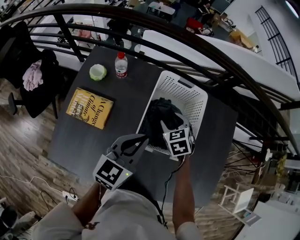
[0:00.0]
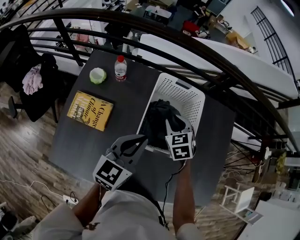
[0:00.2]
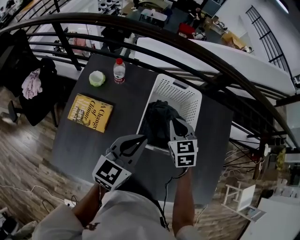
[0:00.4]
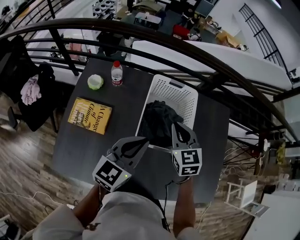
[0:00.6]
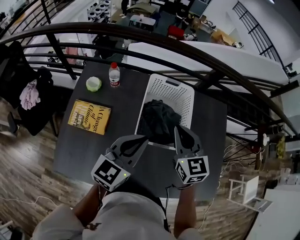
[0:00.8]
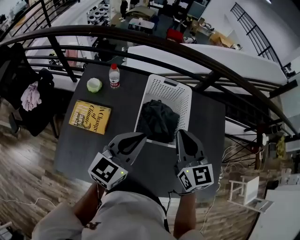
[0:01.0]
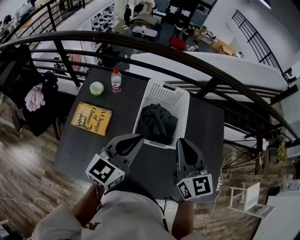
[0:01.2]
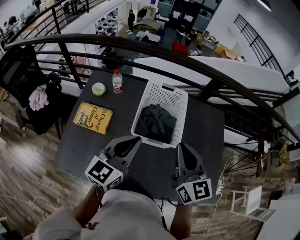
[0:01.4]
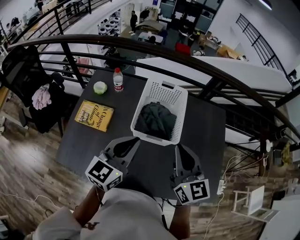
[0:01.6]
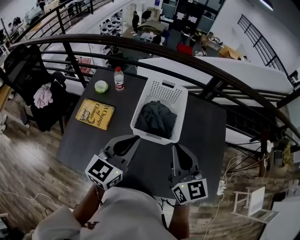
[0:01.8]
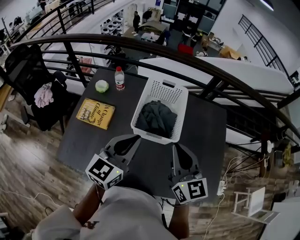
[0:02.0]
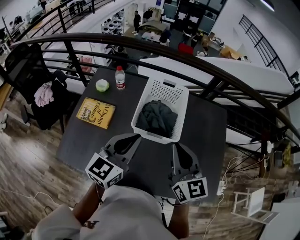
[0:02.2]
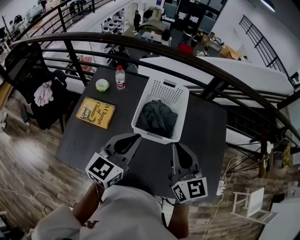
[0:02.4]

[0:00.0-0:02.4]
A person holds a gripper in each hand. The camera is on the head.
0.0 to 1.2 s: The left gripper travels upward and backward by some 10 cm. Meanwhile the right gripper moves upward and backward, some 30 cm, angles its fingers upward, by roughly 50 degrees, and closes its fingers.
1.2 to 2.4 s: The right gripper travels backward by about 5 cm, while the left gripper moves roughly 5 cm.

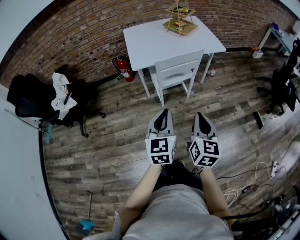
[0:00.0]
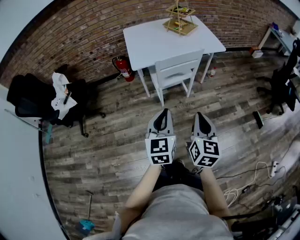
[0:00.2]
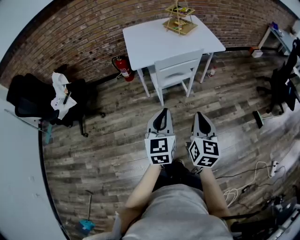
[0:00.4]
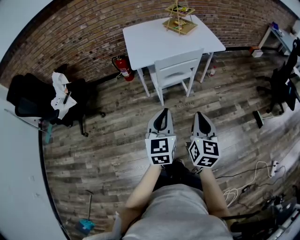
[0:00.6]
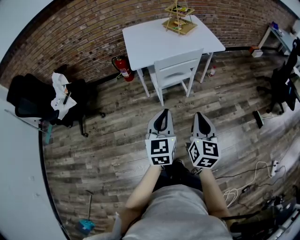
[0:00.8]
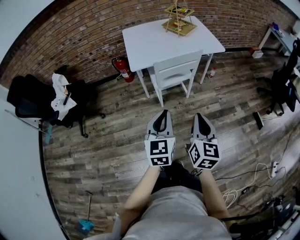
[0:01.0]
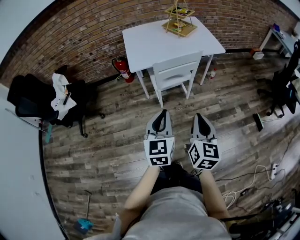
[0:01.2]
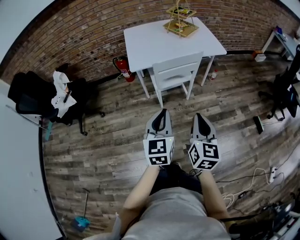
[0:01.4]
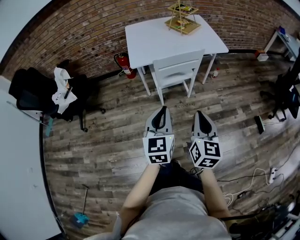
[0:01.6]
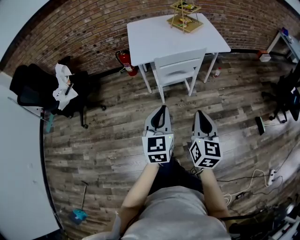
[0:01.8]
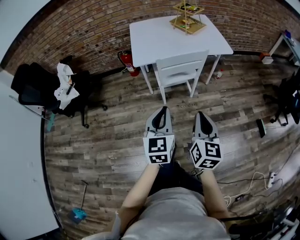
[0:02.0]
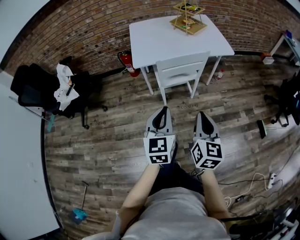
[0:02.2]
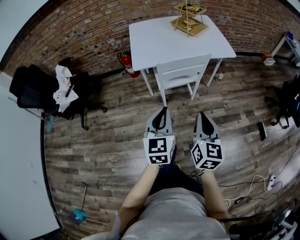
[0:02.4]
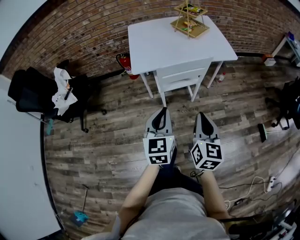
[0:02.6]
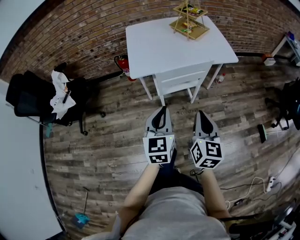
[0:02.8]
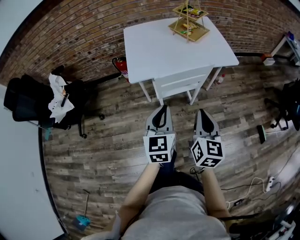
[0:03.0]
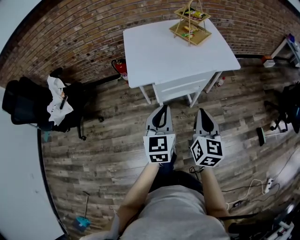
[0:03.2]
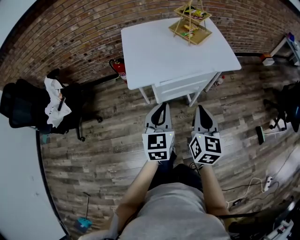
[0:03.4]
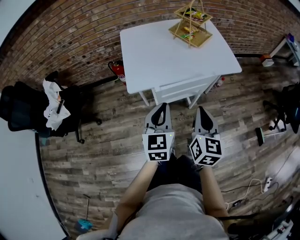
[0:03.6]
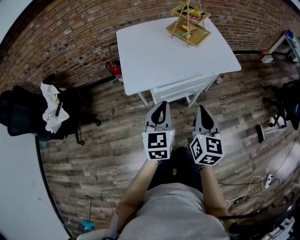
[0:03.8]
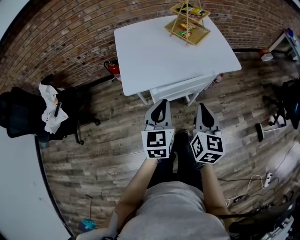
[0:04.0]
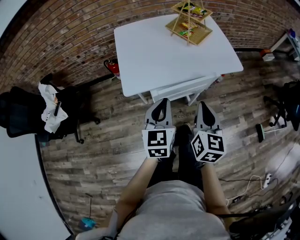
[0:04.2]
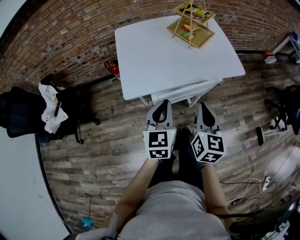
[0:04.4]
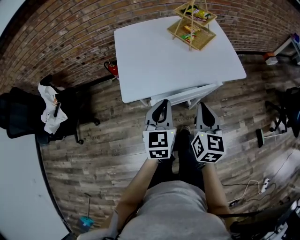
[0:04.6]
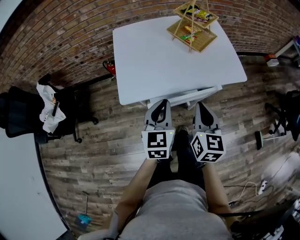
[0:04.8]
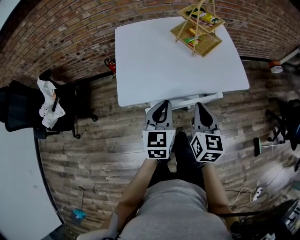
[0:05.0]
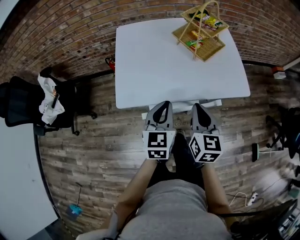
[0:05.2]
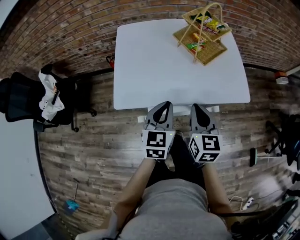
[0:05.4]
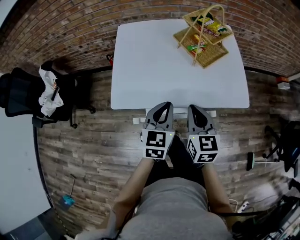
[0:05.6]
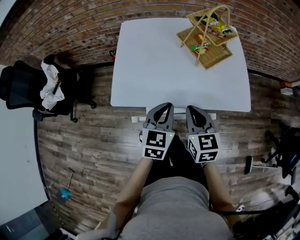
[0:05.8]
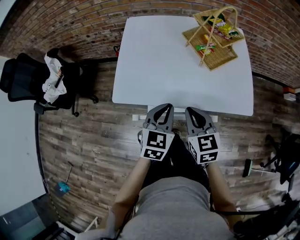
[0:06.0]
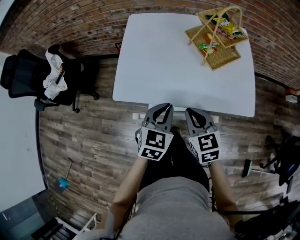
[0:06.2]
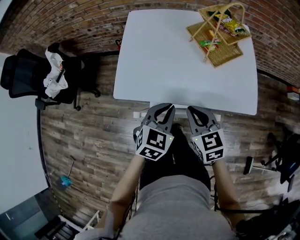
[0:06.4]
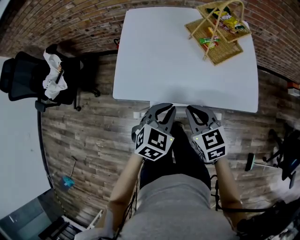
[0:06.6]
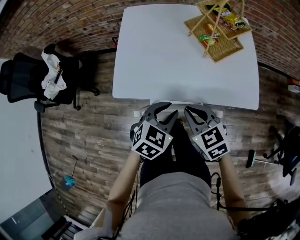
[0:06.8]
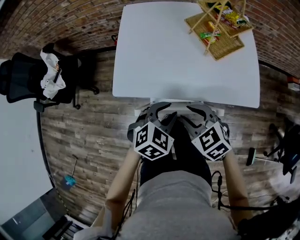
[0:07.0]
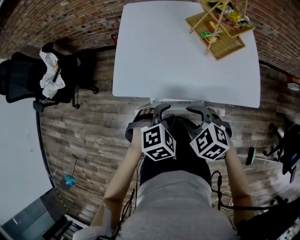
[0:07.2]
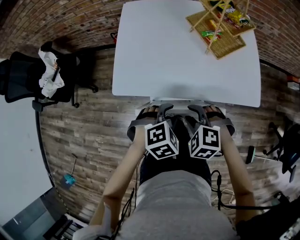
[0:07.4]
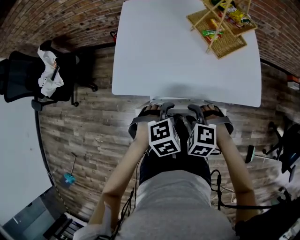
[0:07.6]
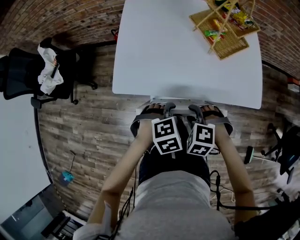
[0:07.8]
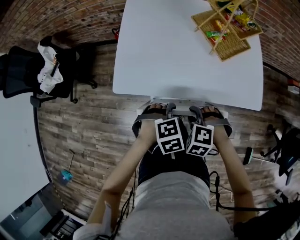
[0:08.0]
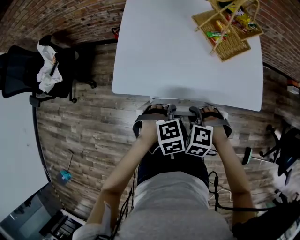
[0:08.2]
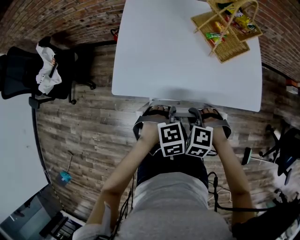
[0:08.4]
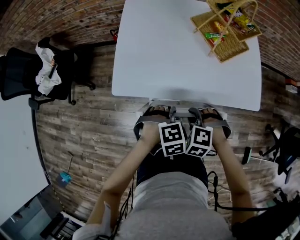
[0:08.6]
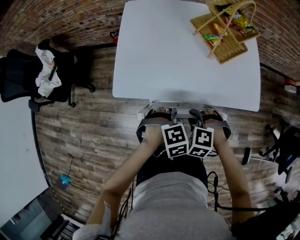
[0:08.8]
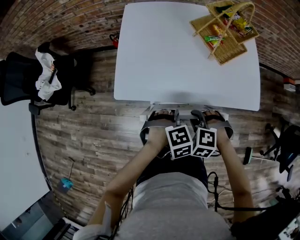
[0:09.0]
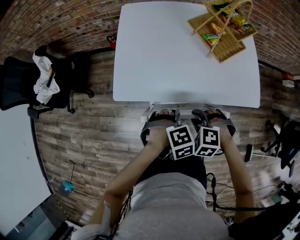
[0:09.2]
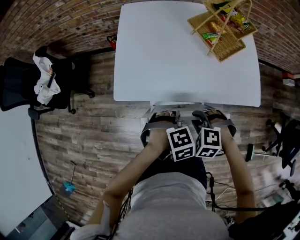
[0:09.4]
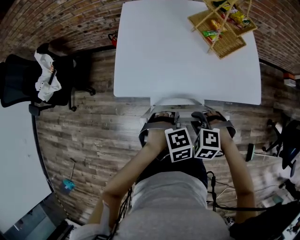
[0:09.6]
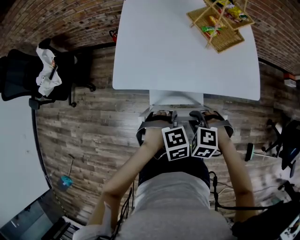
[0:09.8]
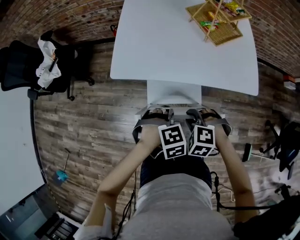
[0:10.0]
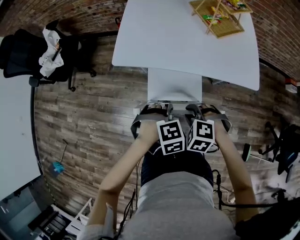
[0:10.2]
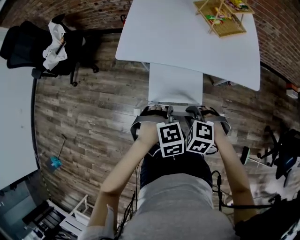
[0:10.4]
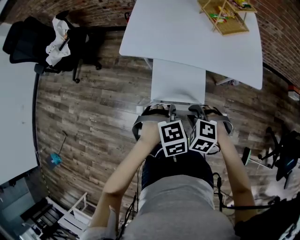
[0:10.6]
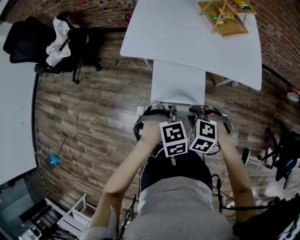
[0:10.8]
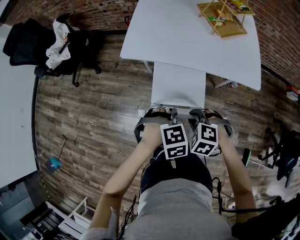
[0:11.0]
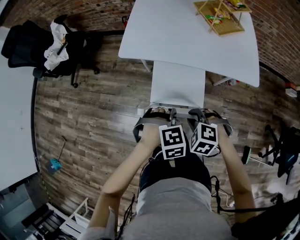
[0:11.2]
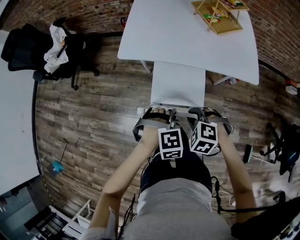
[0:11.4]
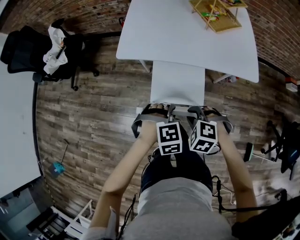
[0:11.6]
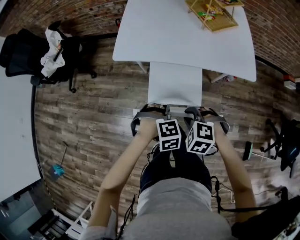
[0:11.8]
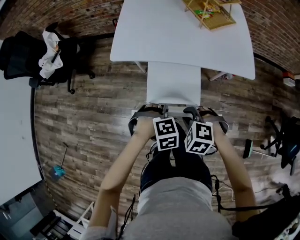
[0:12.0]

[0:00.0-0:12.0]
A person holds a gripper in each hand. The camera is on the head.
0.0 to 1.6 s: The grippers make only small movements.
1.6 to 3.0 s: Both grippers travel together forward, some 15 cm.
3.0 to 4.4 s: The grippers both shift forward by about 15 cm.
4.4 to 6.0 s: The right gripper heads forward, covering approximately 15 cm, and rotates roughly 40 degrees. The left gripper is displaced forward and to the right by some 15 cm.
6.0 to 7.6 s: The left gripper is displaced downward and backward by about 10 cm, tilts its fingers roughly 40 degrees downward, and opens. The right gripper shifts about 10 cm downward, rolls counterclockwise, seen from behind, by approximately 60 degrees, and opens its fingers.
7.6 to 9.0 s: The left gripper closes.
9.0 to 10.4 s: The right gripper shifts by some 15 cm, while the left gripper changes place by about 15 cm.
10.4 to 12.0 s: The grippers move only a little.

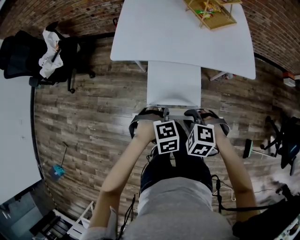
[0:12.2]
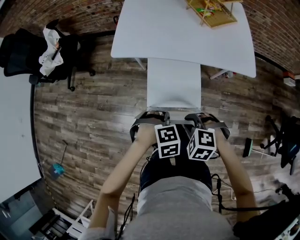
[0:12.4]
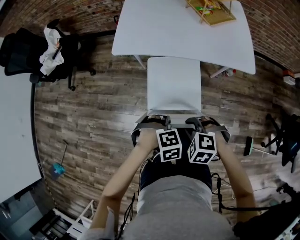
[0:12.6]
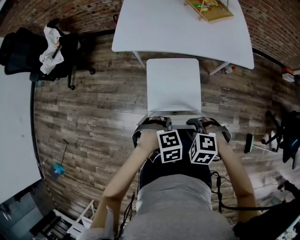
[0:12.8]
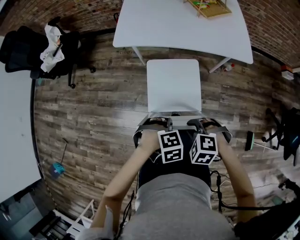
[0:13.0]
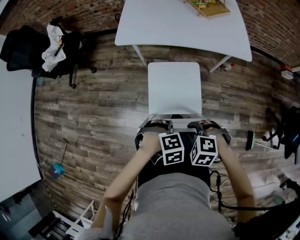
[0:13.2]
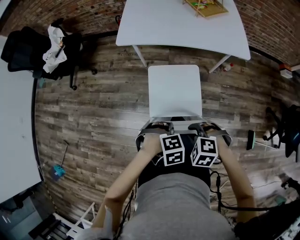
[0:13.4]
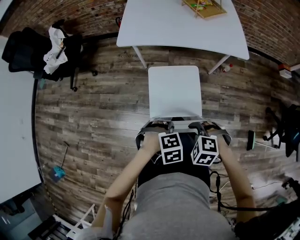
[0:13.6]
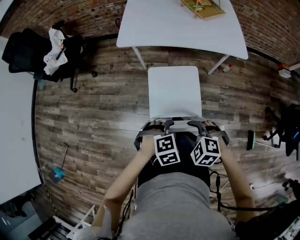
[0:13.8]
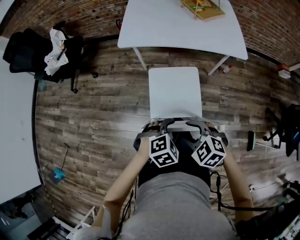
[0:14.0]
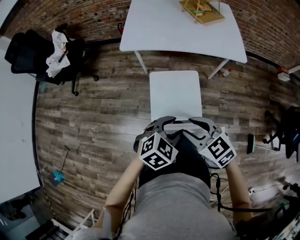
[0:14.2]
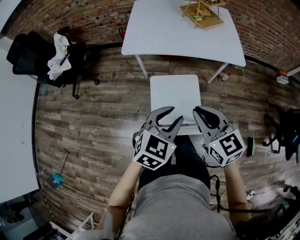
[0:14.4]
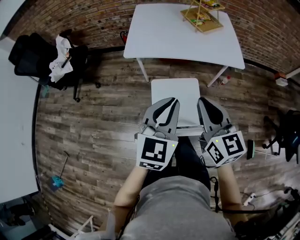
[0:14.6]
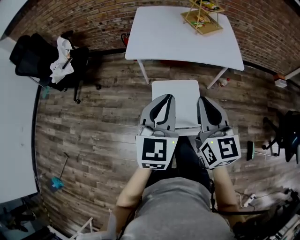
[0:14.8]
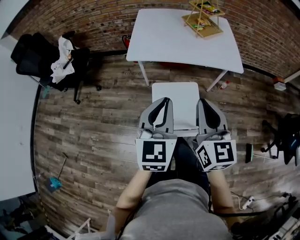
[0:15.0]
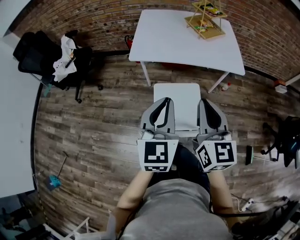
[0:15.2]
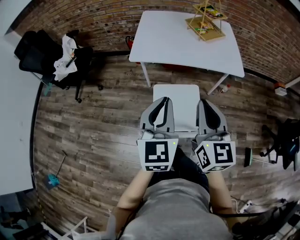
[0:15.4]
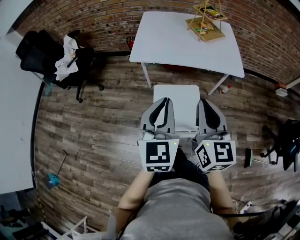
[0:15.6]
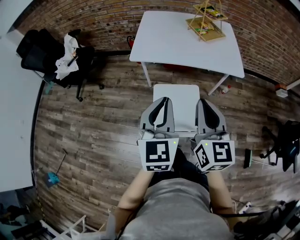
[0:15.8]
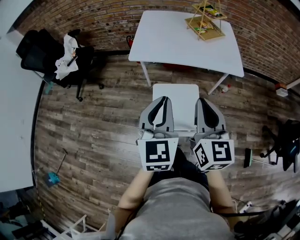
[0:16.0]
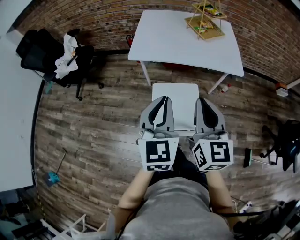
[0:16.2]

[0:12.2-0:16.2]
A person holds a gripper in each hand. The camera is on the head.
12.2 to 13.6 s: The right gripper shifts by some 20 cm. The left gripper shifts by about 20 cm.
13.6 to 14.8 s: The grippers both shift upward by approximately 25 cm. The left gripper angles its fingers upward, by roughly 70 degrees, and opens and closes again. Meanwhile the right gripper tilts its fingers roughly 60 degrees upward, and opens, then closes once more.
14.8 to 16.2 s: The grippers move only a little.

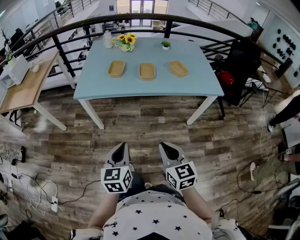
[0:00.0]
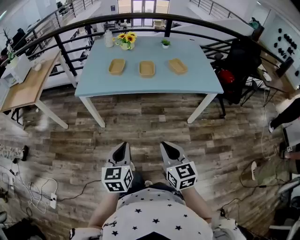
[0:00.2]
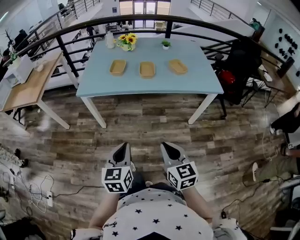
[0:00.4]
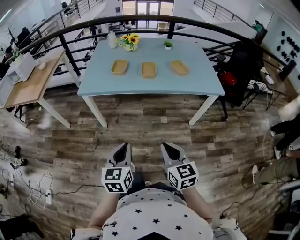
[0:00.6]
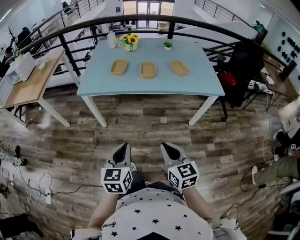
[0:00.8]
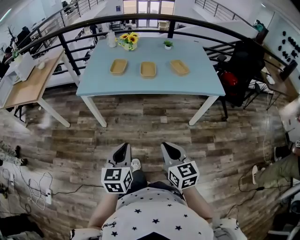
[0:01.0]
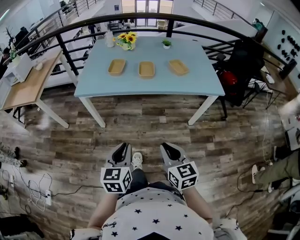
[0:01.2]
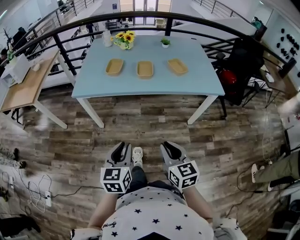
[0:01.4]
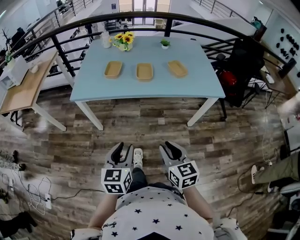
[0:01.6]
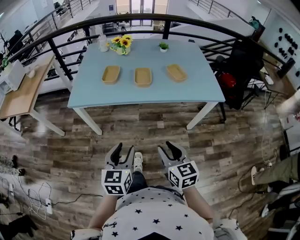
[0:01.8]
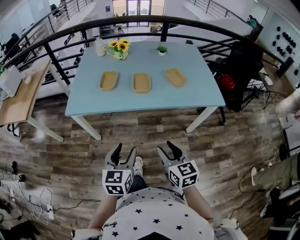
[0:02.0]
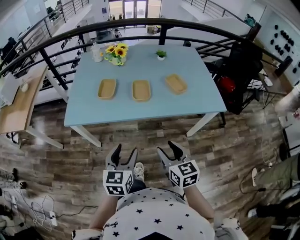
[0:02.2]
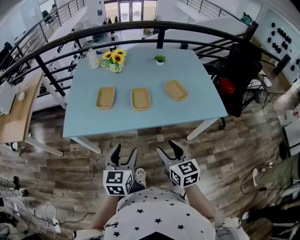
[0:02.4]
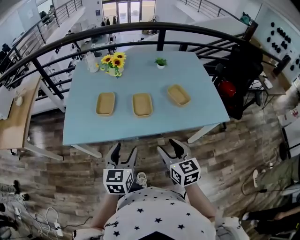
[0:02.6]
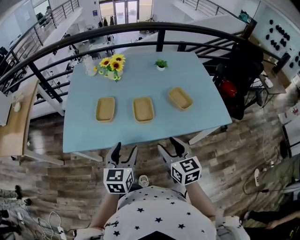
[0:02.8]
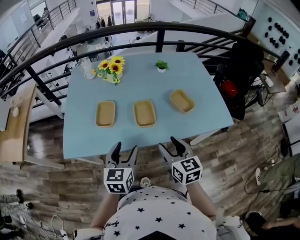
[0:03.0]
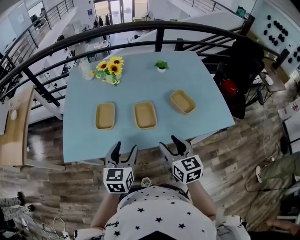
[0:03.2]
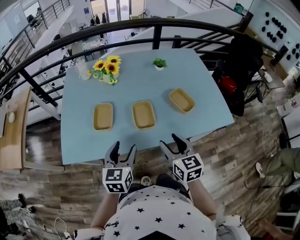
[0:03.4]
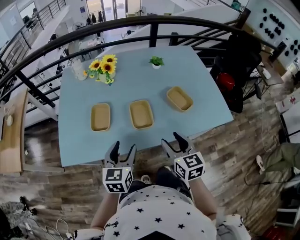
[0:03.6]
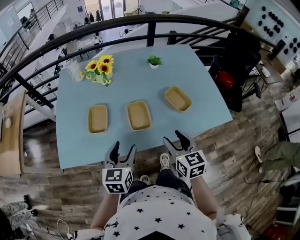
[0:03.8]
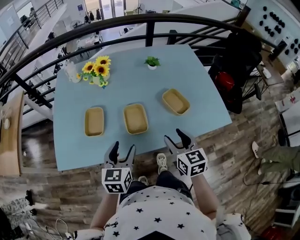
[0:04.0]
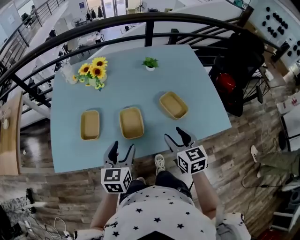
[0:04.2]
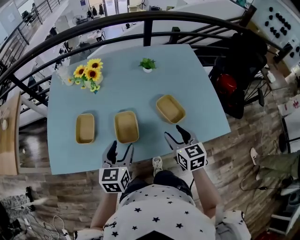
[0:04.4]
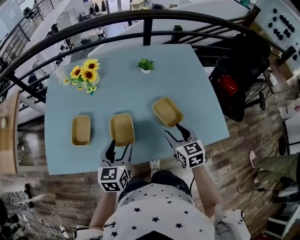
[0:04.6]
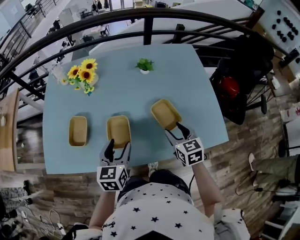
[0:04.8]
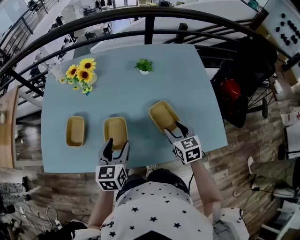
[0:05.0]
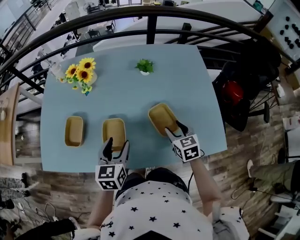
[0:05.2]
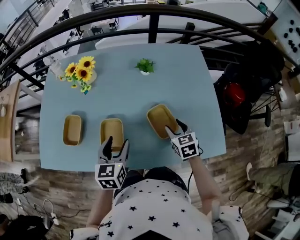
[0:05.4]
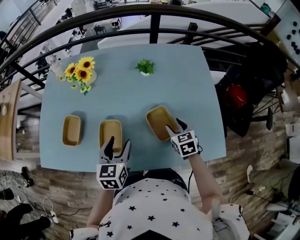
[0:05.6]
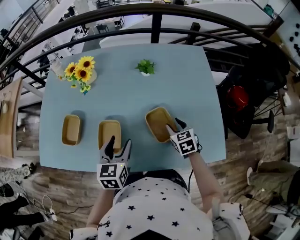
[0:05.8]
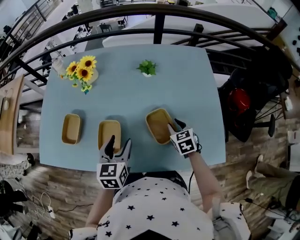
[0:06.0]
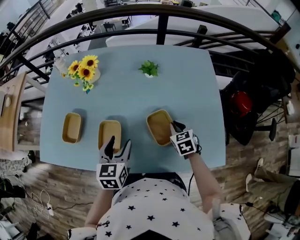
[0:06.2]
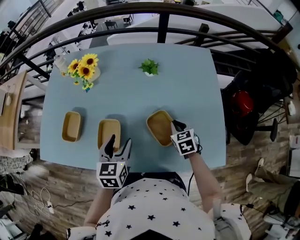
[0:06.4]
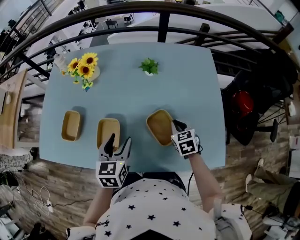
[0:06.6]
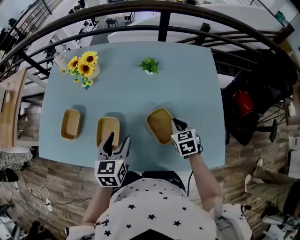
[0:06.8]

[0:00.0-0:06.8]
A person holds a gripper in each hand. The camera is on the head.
0.0 to 1.4 s: There are only small adjustments of the grippers.
1.4 to 2.8 s: Both grippers move forward, approximately 35 cm. The right gripper opens up, while the left gripper opens its fingers.
2.8 to 4.0 s: The left gripper moves forward, some 10 cm, while the right gripper heads forward and to the right, covering some 15 cm.
4.0 to 5.4 s: The right gripper shifts approximately 25 cm forward, to the right and downward, and changes its angle by about 20 degrees, while the left gripper shifts roughly 15 cm forward and to the right.
5.4 to 6.8 s: The right gripper ends up some 5 cm from where it was, and closes its fingers.
